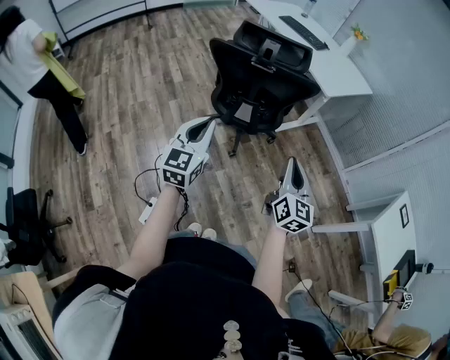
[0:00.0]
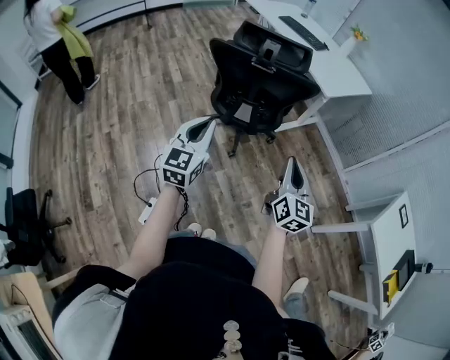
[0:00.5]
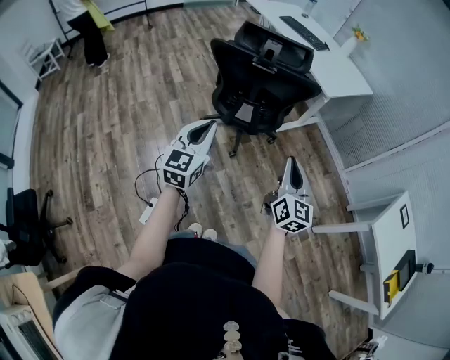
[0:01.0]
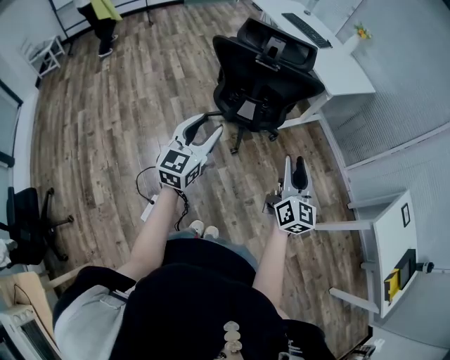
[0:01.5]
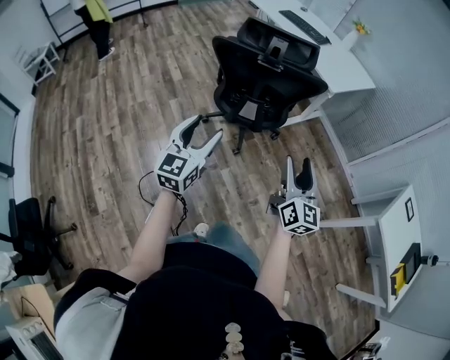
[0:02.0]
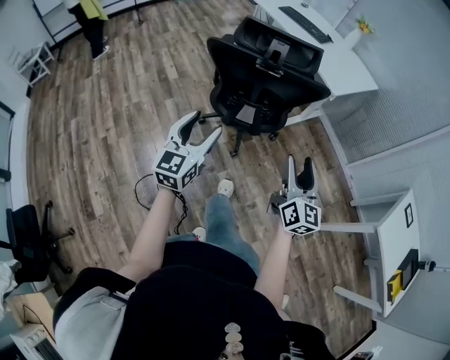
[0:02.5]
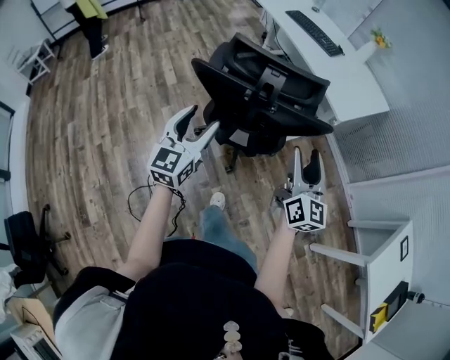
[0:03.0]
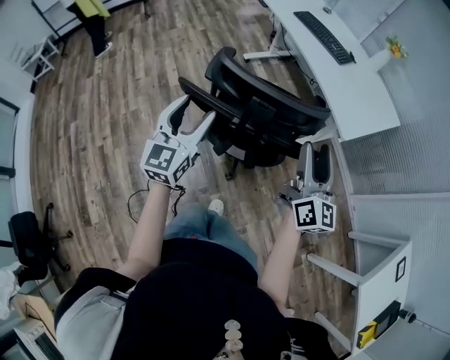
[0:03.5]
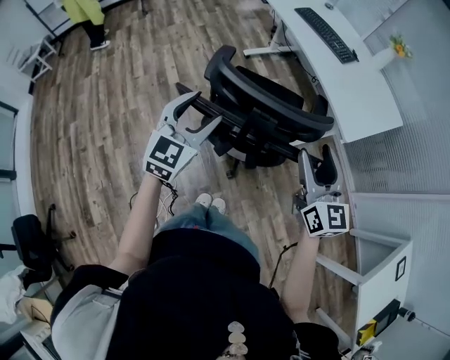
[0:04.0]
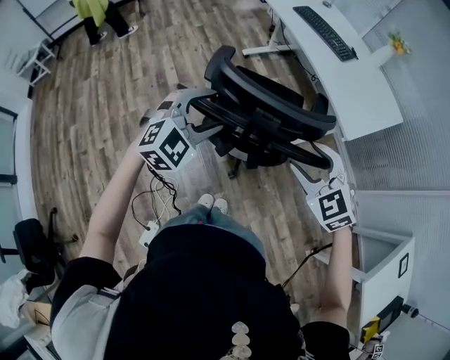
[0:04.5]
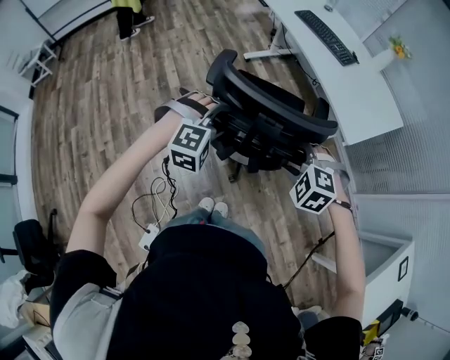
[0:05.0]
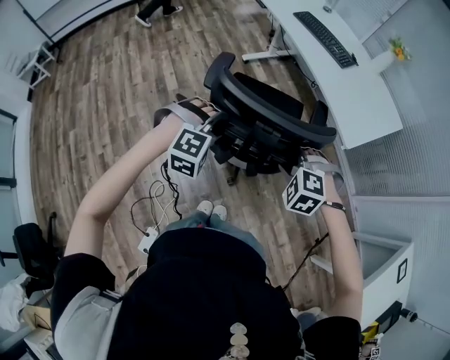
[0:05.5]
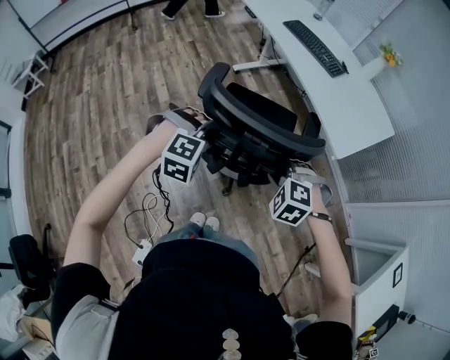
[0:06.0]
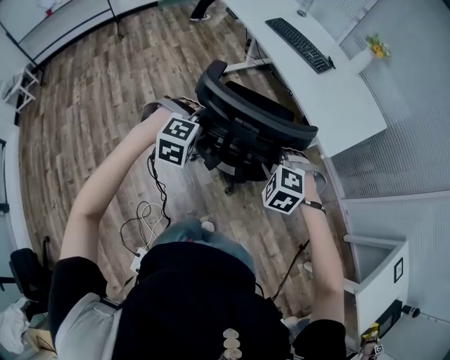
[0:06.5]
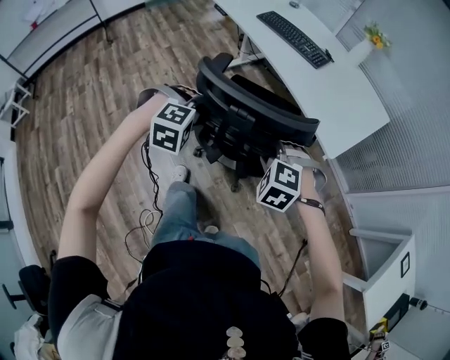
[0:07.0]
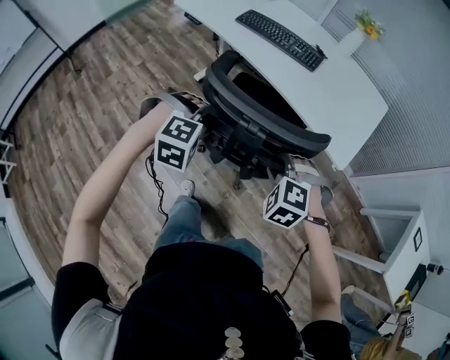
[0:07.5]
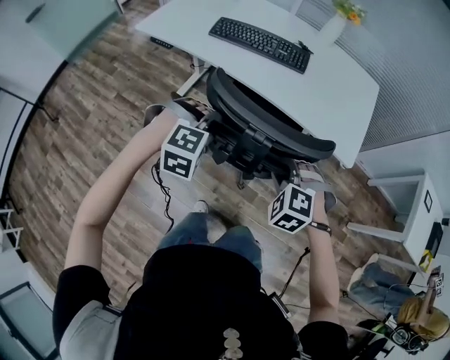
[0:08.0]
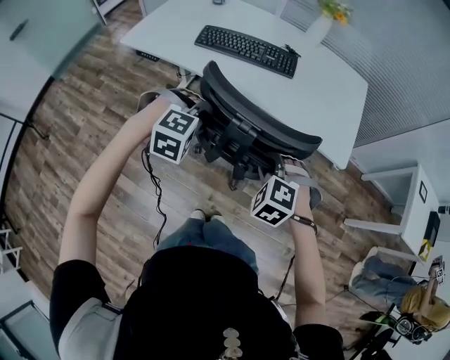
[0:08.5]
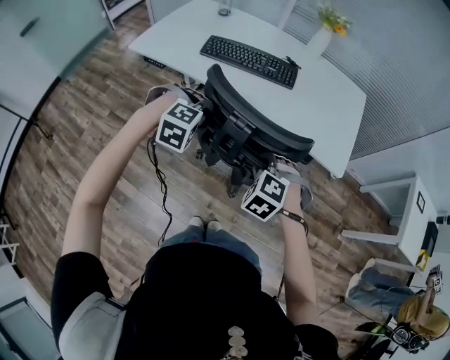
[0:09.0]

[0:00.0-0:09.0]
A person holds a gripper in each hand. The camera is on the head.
0:00.0 to 0:02.0: The left gripper opens up. The right gripper opens its fingers.
0:02.0 to 0:04.5: Both grippers move forward, roughly 40 cm. The left gripper rolls clockwise, seen from behind, by some 40 degrees. The right gripper angles its fingers downward, by approximately 40 degrees.
0:04.5 to 0:07.0: Both grippers travel together forward and downward, roughly 20 cm. The left gripper points its fingers about 30 degrees further downward, and closes up. Meanwhile the right gripper turns by some 30 degrees, and closes up.
0:07.0 to 0:09.0: The right gripper changes place by about 25 cm, and turns by approximately 40 degrees. The left gripper changes place by roughly 35 cm, and rotates some 40 degrees.

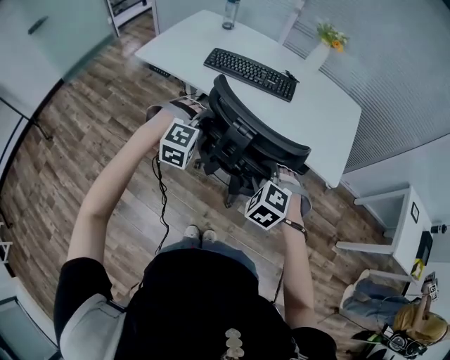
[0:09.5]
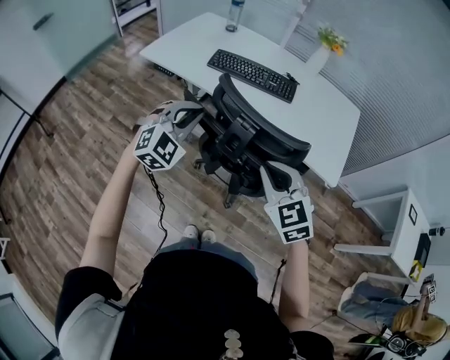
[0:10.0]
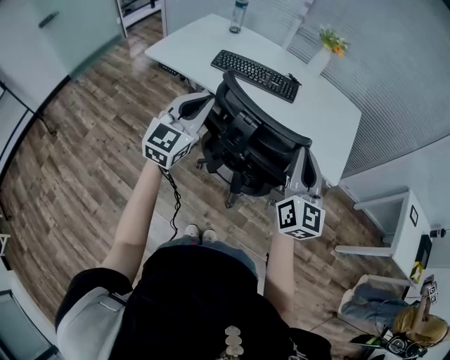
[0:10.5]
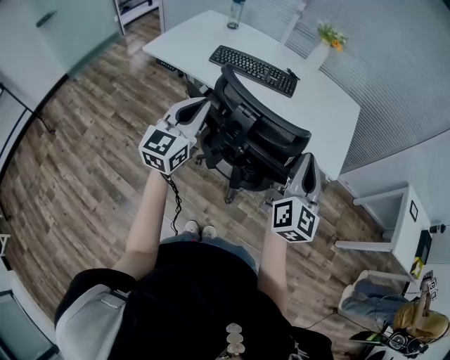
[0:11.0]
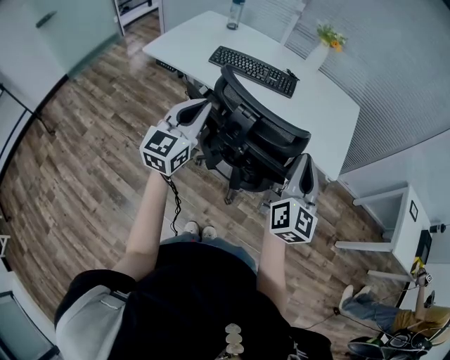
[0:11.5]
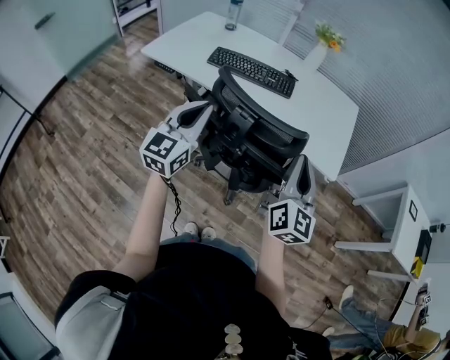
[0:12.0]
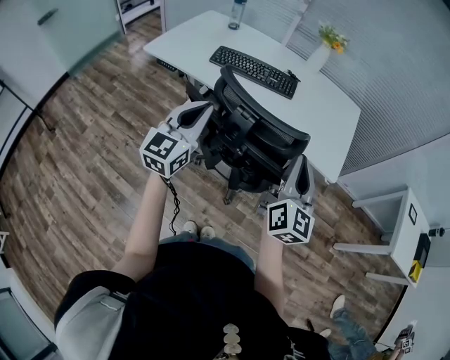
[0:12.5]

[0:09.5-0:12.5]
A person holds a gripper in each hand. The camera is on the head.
0:09.5 to 0:11.0: The left gripper heads upward, covering approximately 15 cm, points its fingers roughly 50 degrees further upward, and closes; the right gripper heads upward and to the right, covering about 20 cm, angles its fingers upward, by roughly 60 degrees, and closes up.
0:11.0 to 0:12.5: The grippers move only a little.

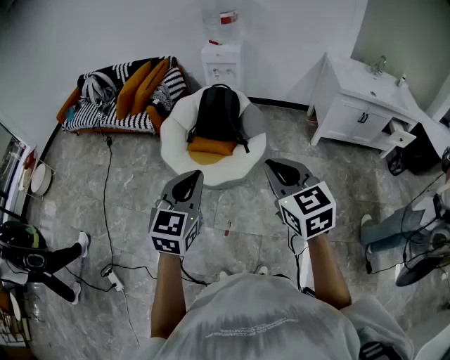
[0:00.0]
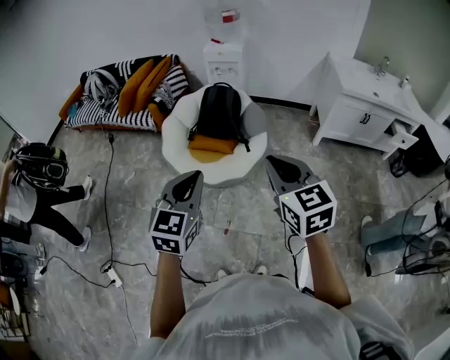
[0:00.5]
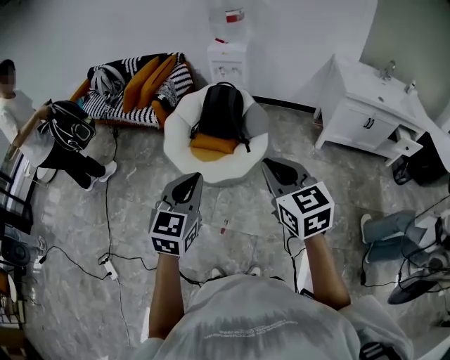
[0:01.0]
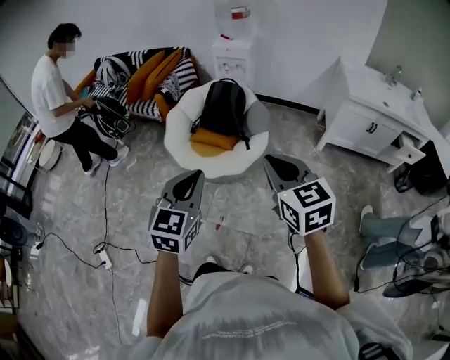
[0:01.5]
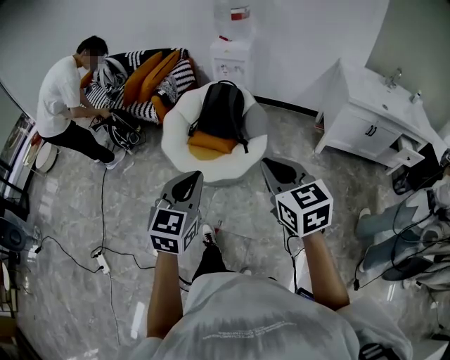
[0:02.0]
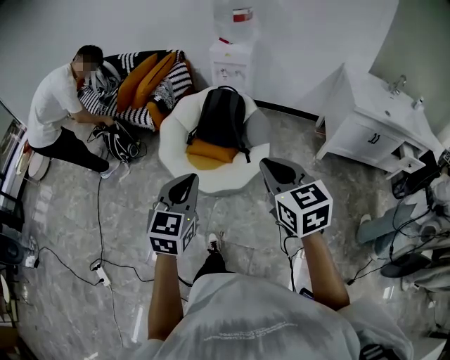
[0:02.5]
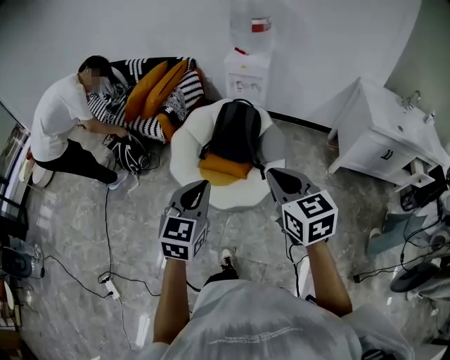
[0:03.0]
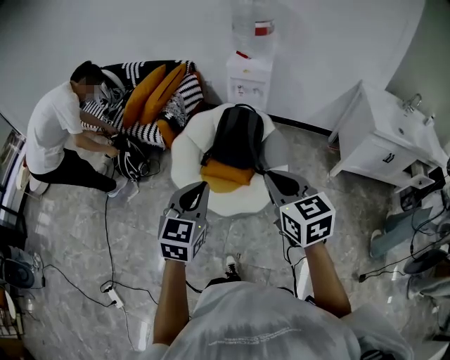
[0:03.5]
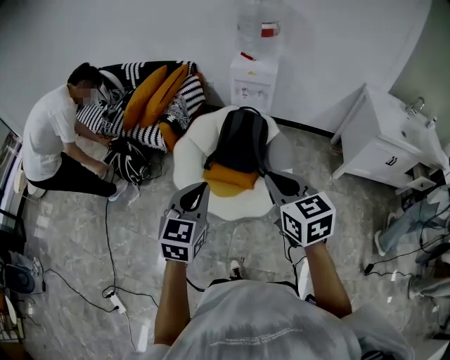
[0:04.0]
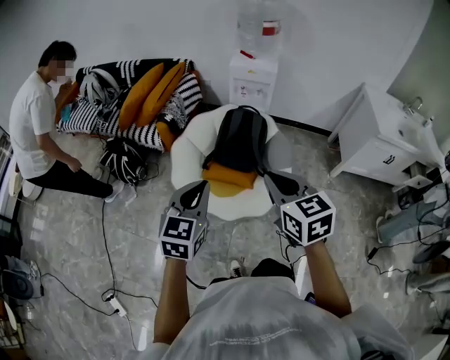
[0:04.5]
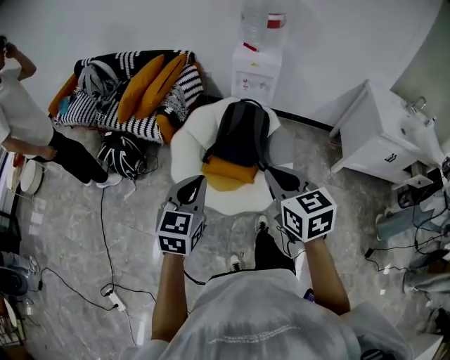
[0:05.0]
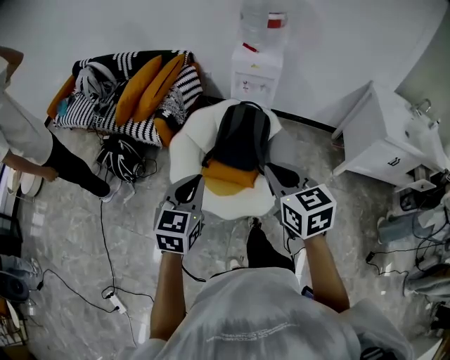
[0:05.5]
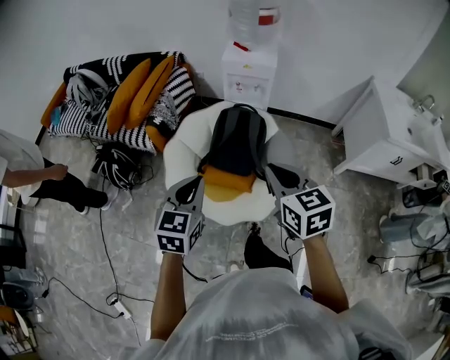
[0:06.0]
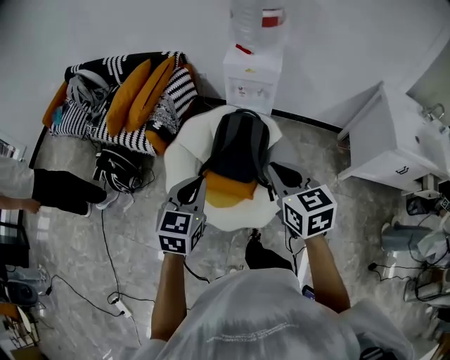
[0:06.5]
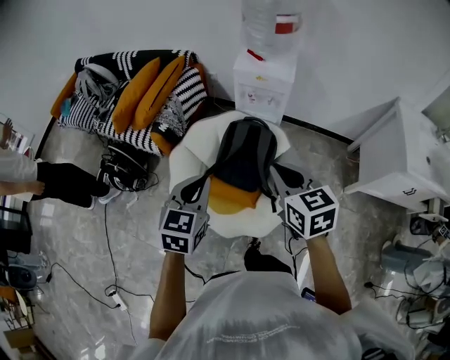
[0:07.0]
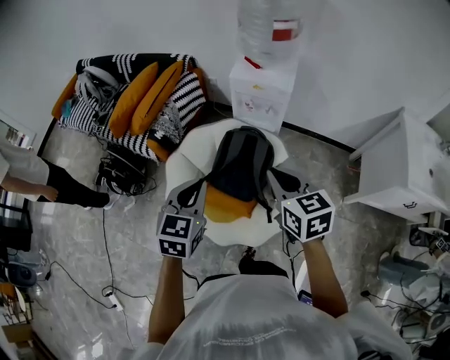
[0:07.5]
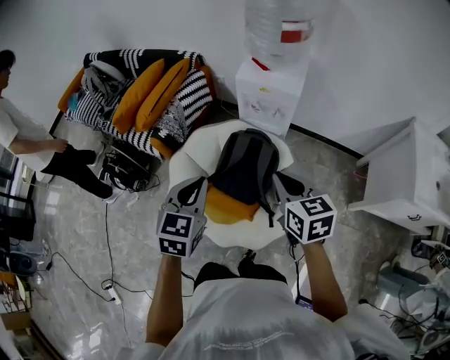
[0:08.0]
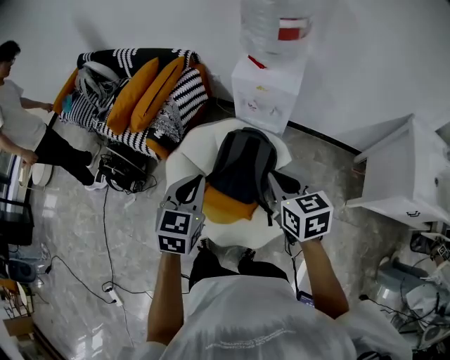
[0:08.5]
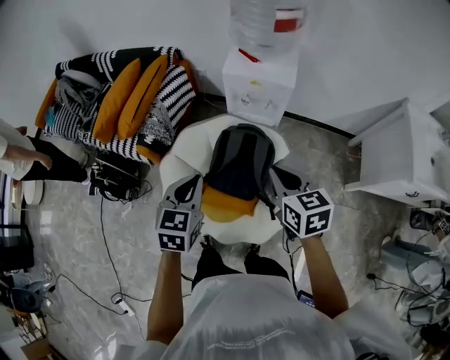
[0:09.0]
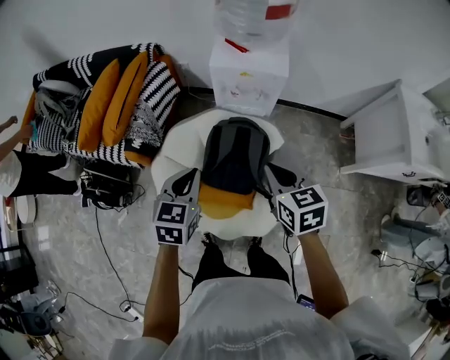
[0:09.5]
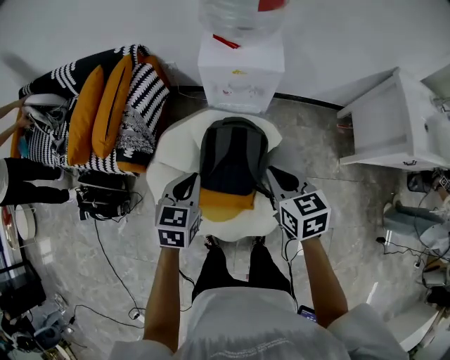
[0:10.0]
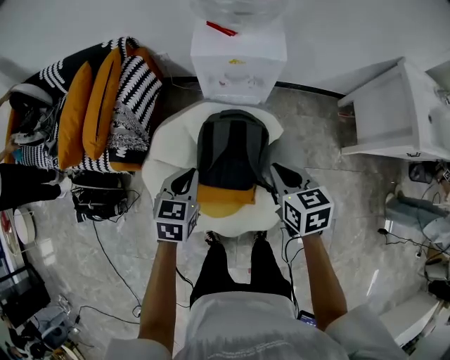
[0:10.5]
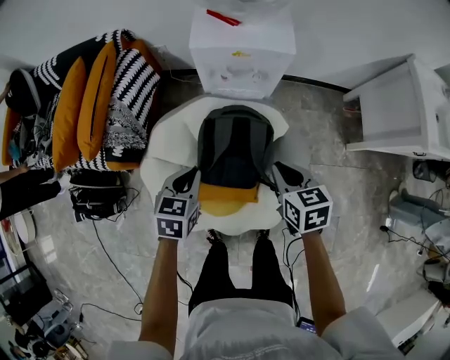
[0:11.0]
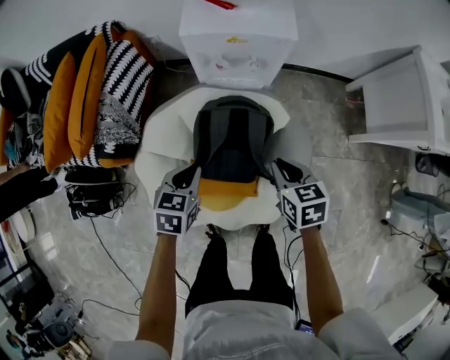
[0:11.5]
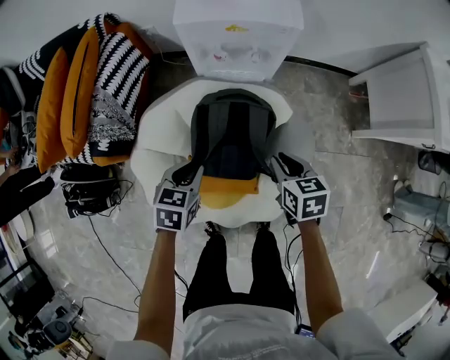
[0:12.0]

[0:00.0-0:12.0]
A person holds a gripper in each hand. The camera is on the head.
0:00.0 to 0:02.0: Both grippers travel together to the right, roughly 5 cm.
0:02.0 to 0:04.0: The grippers both shift forward and to the left by some 35 cm.
0:04.0 to 0:06.0: Both grippers move forward, some 15 cm.
0:06.0 to 0:08.0: The grippers both shift forward and to the right by about 25 cm.
0:08.0 to 0:10.0: The right gripper moves downward and forward, some 15 cm. The left gripper moves forward and downward, some 20 cm.
0:10.0 to 0:12.0: The grippers both shift downward by some 20 cm.

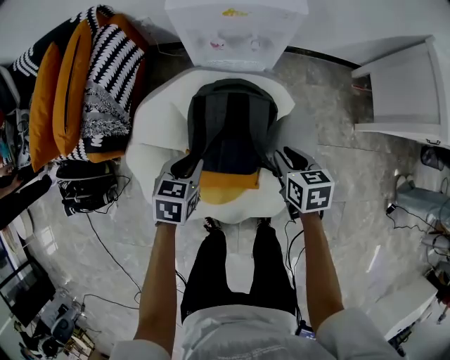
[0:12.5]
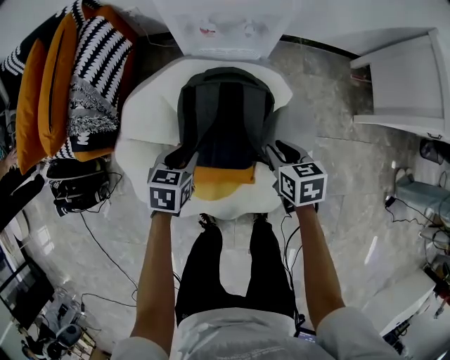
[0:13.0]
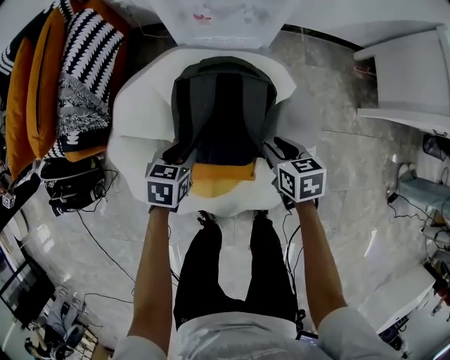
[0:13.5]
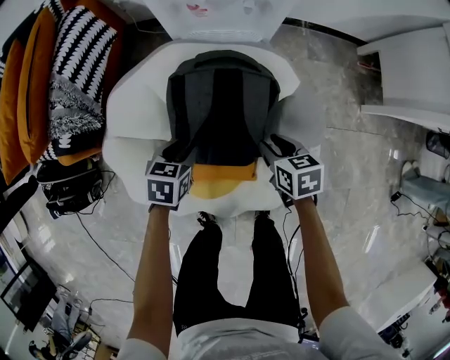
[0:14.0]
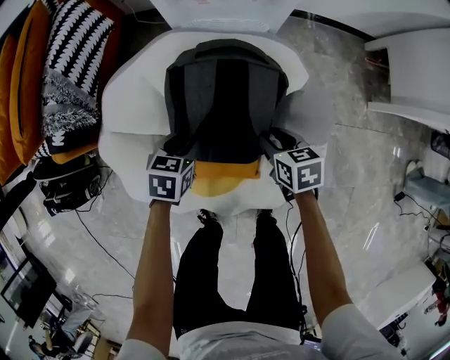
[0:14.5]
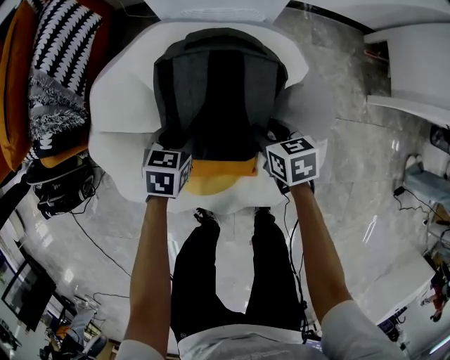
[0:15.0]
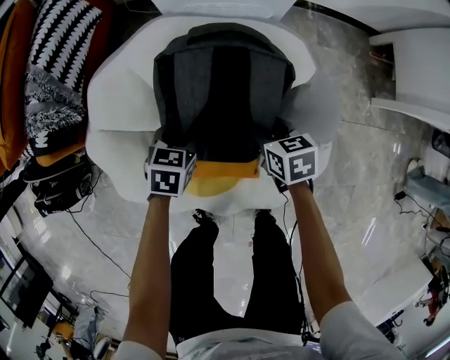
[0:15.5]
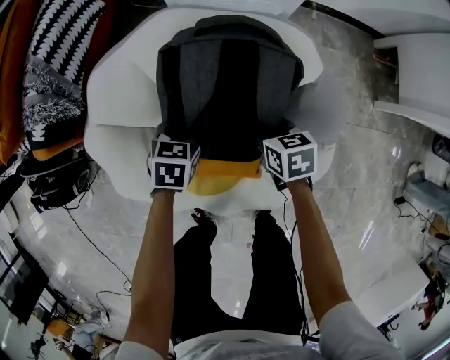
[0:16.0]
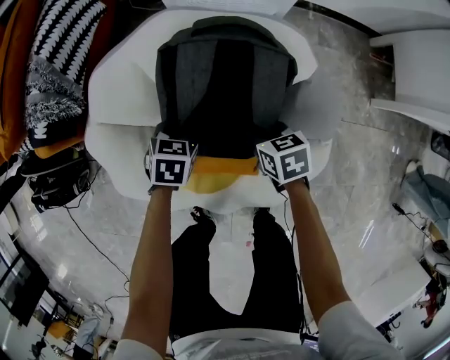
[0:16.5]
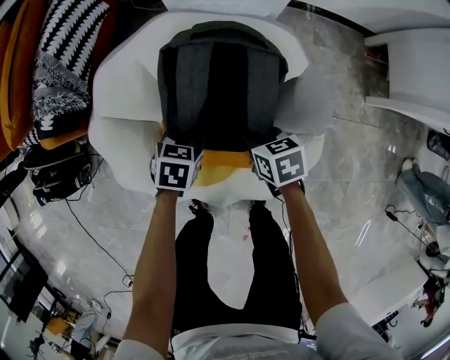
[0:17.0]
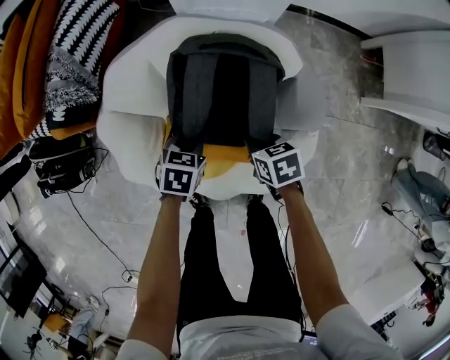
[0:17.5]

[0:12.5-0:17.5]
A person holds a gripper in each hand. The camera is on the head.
0:12.5 to 0:15.0: The two grippers go roughly 20 cm downward.
0:15.0 to 0:17.5: Both grippers travel together backward, approximately 5 cm. The right gripper closes its fingers; the left gripper closes up.
